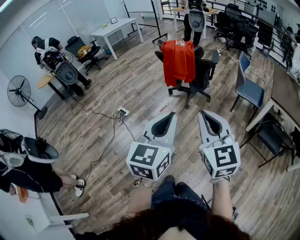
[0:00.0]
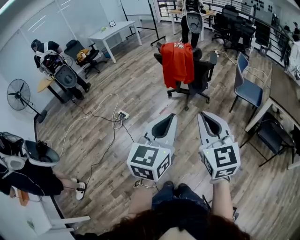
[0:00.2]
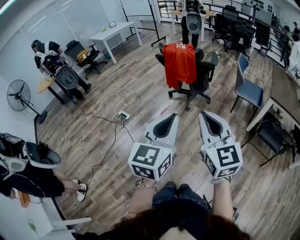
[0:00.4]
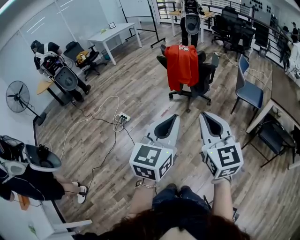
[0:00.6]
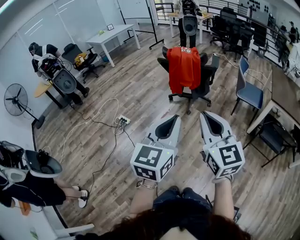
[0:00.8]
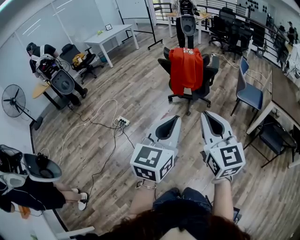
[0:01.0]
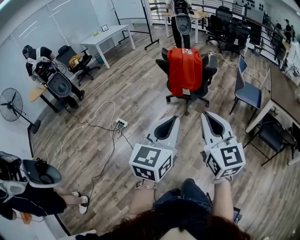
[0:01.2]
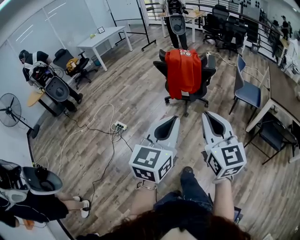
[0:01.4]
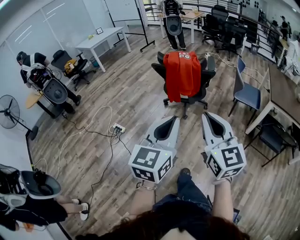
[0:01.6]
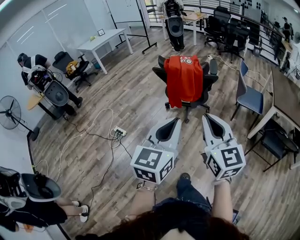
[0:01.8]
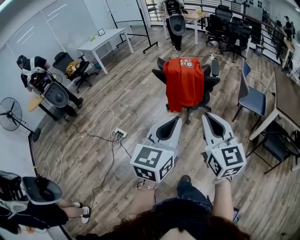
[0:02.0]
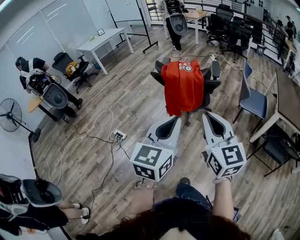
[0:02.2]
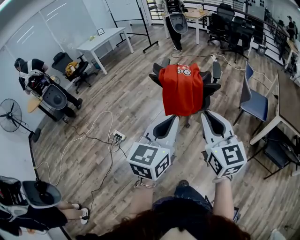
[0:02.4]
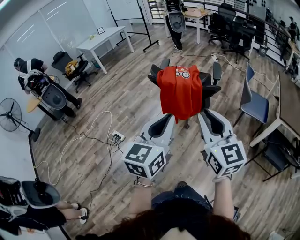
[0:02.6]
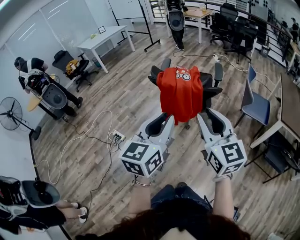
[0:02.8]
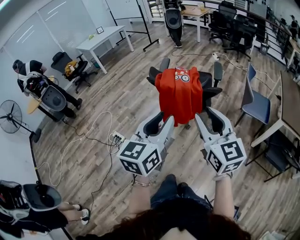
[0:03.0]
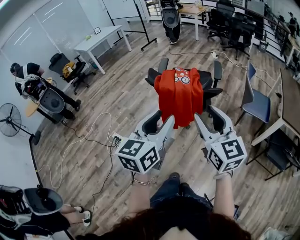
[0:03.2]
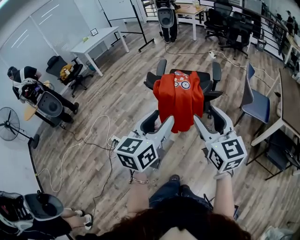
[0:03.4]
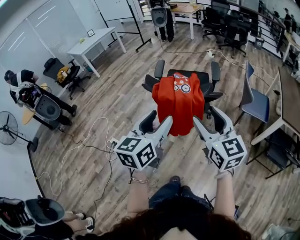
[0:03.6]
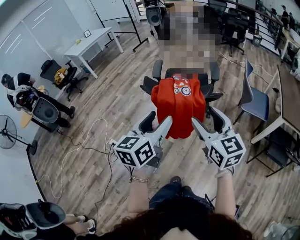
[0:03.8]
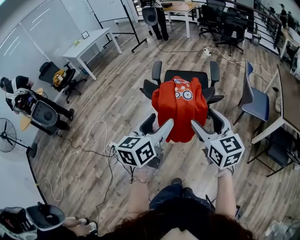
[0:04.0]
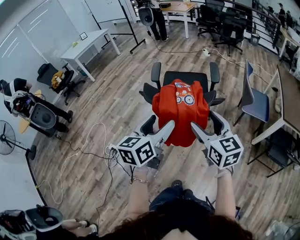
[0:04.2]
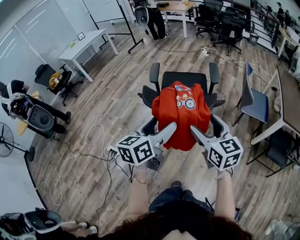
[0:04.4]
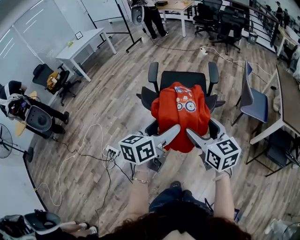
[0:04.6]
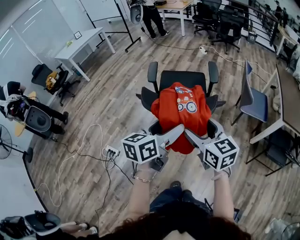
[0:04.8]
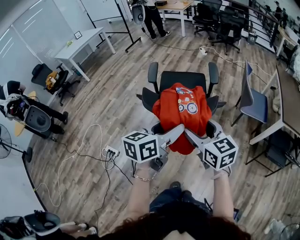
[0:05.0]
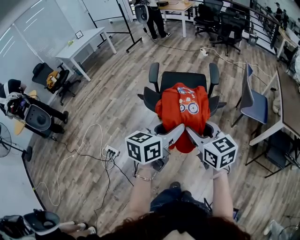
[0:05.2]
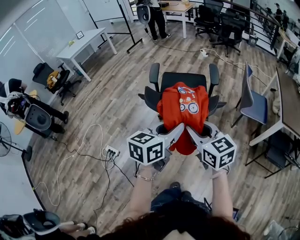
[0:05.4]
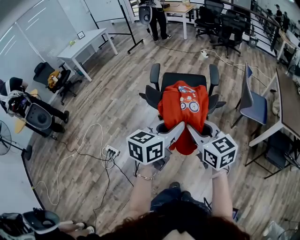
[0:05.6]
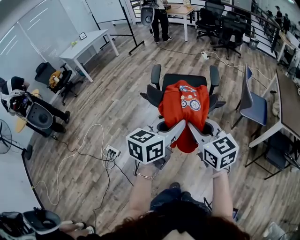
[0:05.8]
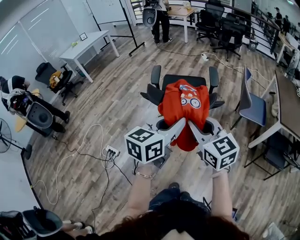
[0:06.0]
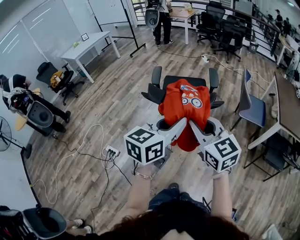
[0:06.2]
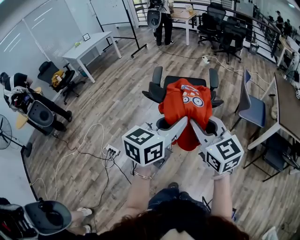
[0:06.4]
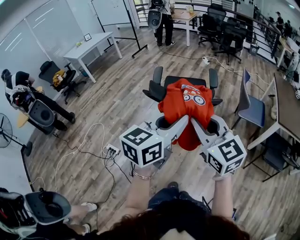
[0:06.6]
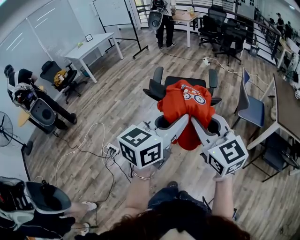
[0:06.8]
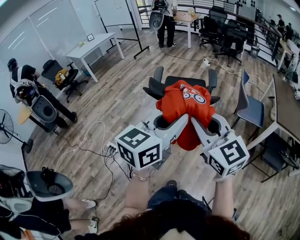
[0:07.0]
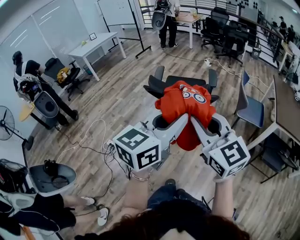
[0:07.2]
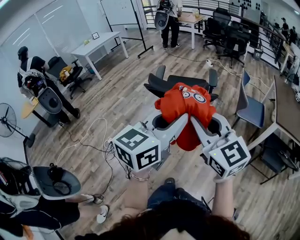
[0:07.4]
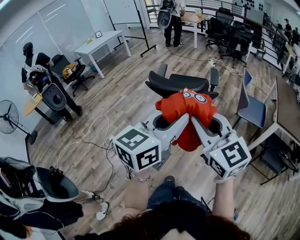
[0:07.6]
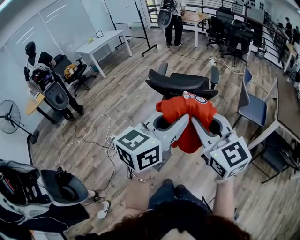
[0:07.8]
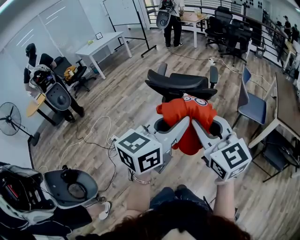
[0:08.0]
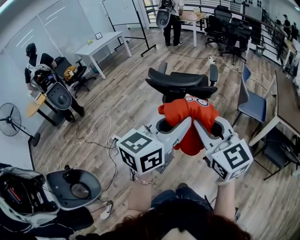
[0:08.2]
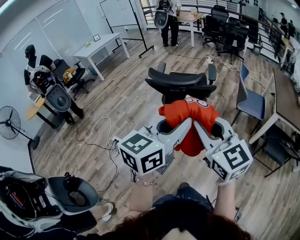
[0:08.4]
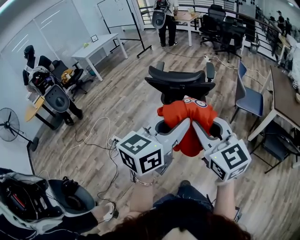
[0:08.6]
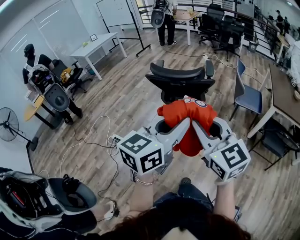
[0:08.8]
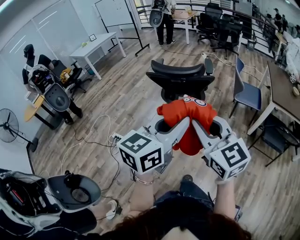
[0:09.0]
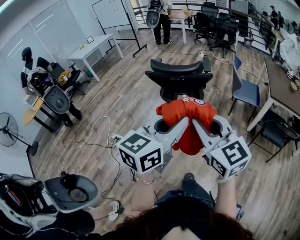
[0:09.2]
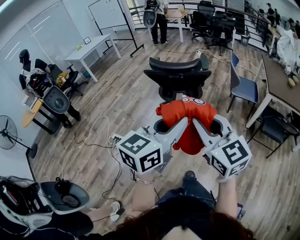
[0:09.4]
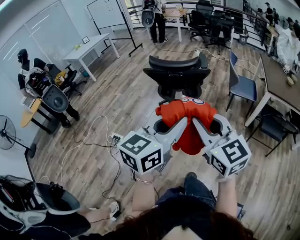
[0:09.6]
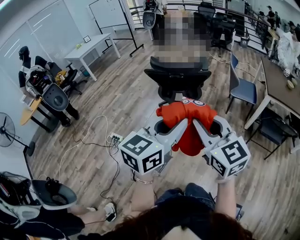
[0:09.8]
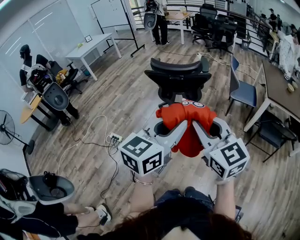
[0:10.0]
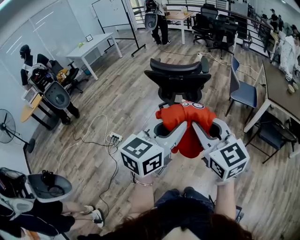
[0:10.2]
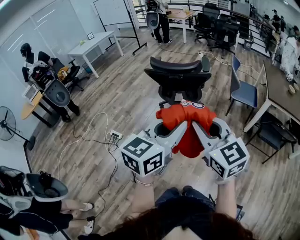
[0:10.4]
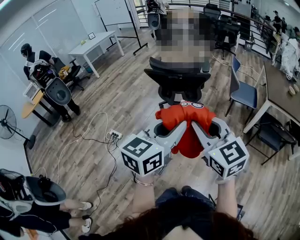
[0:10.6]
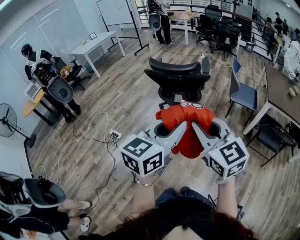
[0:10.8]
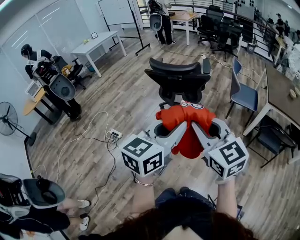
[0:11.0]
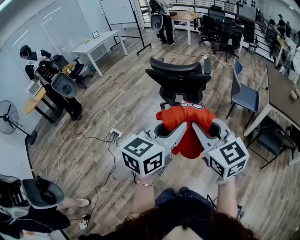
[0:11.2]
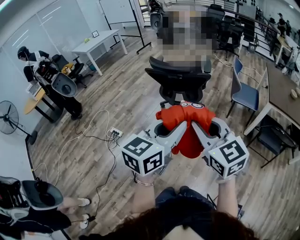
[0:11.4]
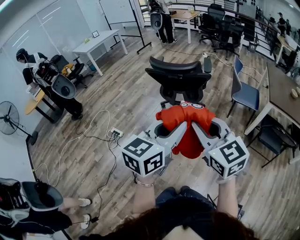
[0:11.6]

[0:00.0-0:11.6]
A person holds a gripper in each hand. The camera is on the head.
0:00.0 to 0:01.4: Both grippers move to the left and forward, approximately 15 cm.
0:01.4 to 0:02.8: The grippers both shift forward by roughly 25 cm.
0:02.8 to 0:04.4: Both grippers travel together forward and downward, roughly 20 cm. The left gripper changes its angle by some 20 degrees, and opens up. The right gripper opens.
0:04.4 to 0:05.8: The right gripper moves about 5 cm, and closes up, while the left gripper moves roughly 5 cm, and closes up.
0:05.8 to 0:07.2: The grippers both shift backward and upward by roughly 20 cm.
0:07.2 to 0:08.8: The two grippers go about 15 cm backward.
0:08.8 to 0:10.2: Both grippers travel together backward, about 5 cm.
0:10.2 to 0:11.6: The grippers move only a little.

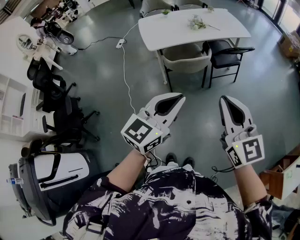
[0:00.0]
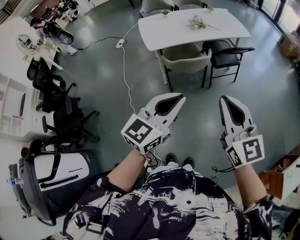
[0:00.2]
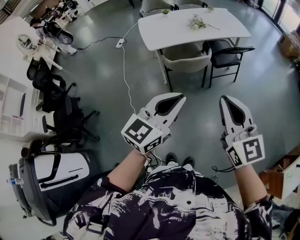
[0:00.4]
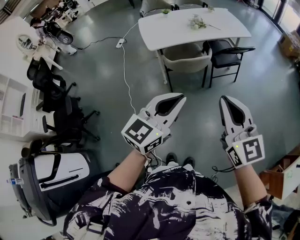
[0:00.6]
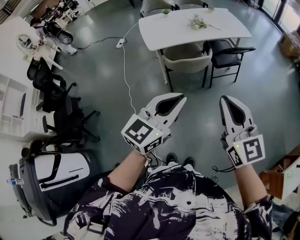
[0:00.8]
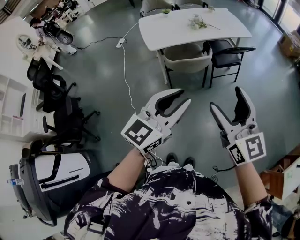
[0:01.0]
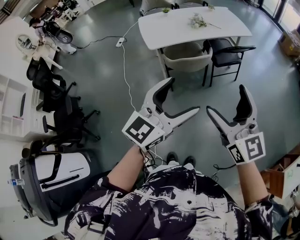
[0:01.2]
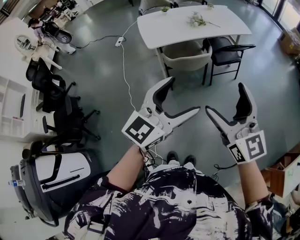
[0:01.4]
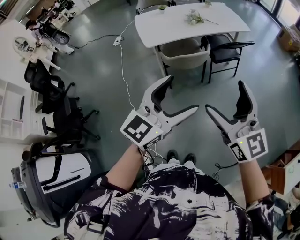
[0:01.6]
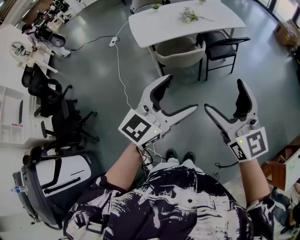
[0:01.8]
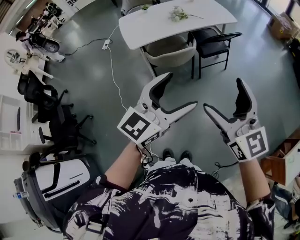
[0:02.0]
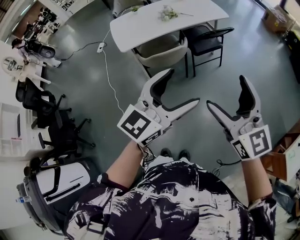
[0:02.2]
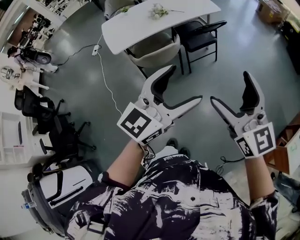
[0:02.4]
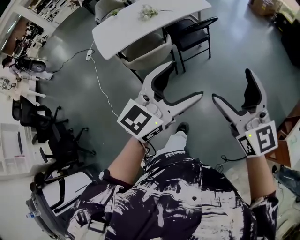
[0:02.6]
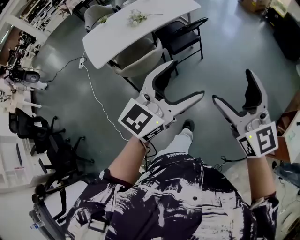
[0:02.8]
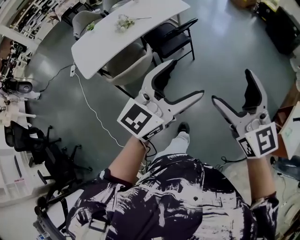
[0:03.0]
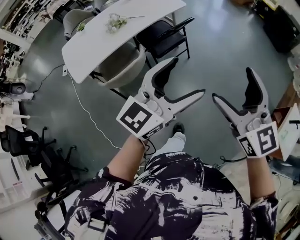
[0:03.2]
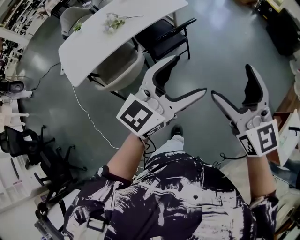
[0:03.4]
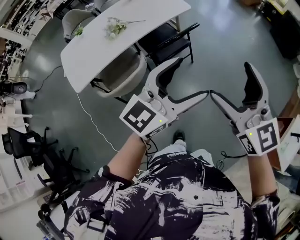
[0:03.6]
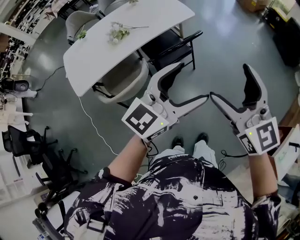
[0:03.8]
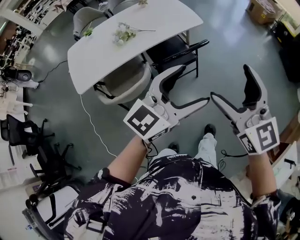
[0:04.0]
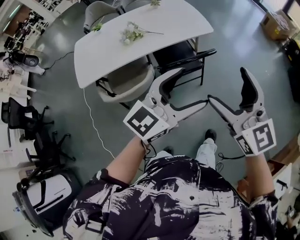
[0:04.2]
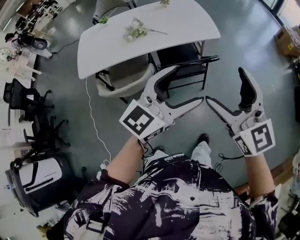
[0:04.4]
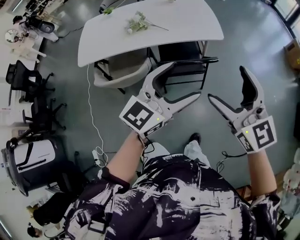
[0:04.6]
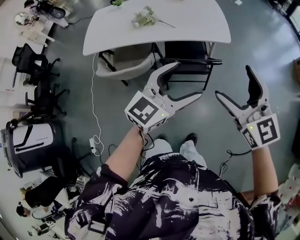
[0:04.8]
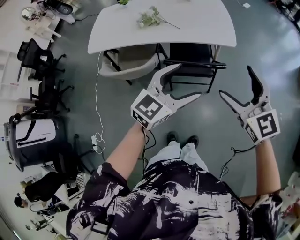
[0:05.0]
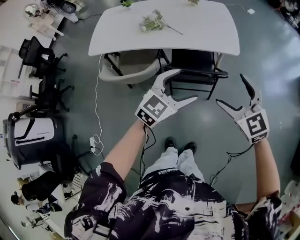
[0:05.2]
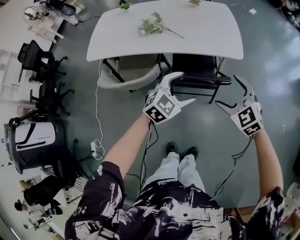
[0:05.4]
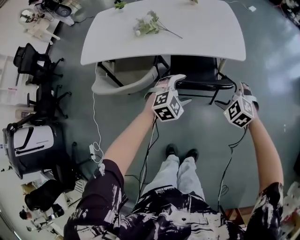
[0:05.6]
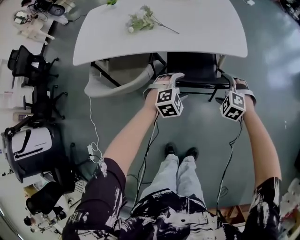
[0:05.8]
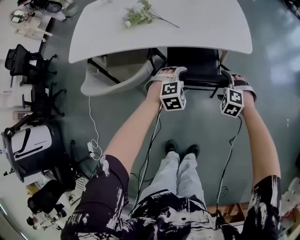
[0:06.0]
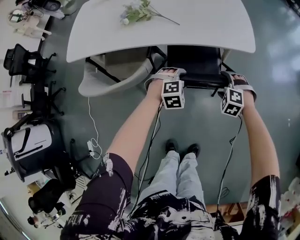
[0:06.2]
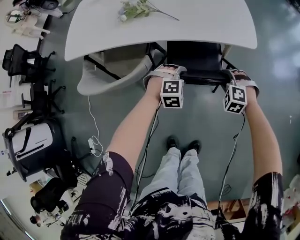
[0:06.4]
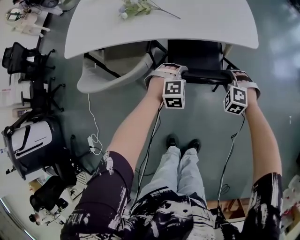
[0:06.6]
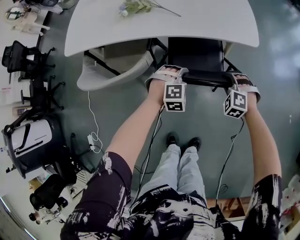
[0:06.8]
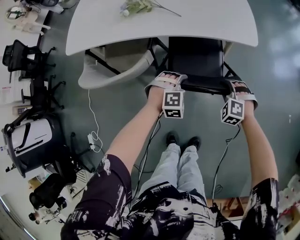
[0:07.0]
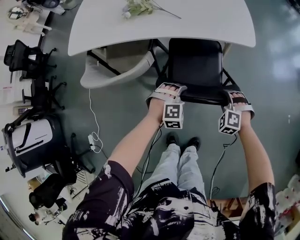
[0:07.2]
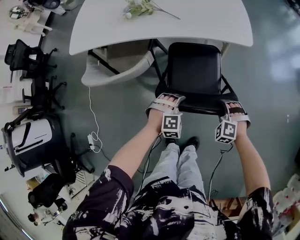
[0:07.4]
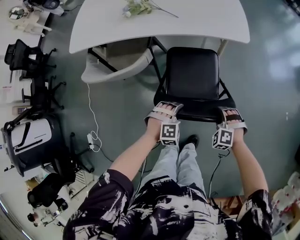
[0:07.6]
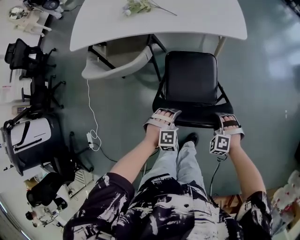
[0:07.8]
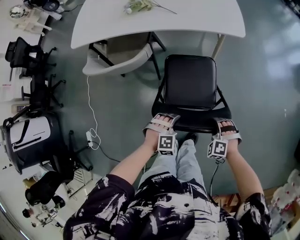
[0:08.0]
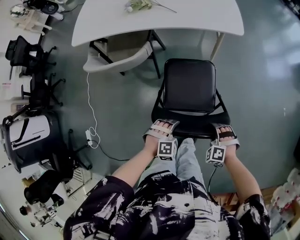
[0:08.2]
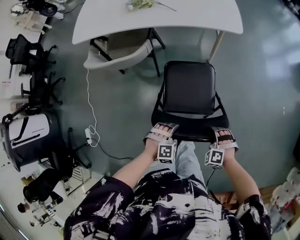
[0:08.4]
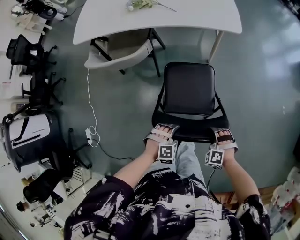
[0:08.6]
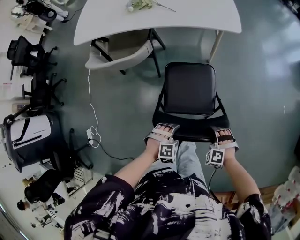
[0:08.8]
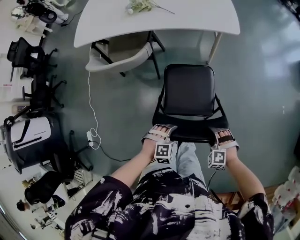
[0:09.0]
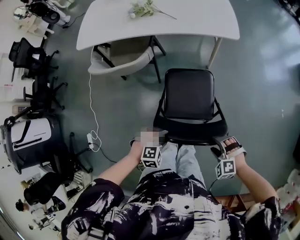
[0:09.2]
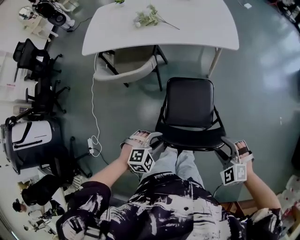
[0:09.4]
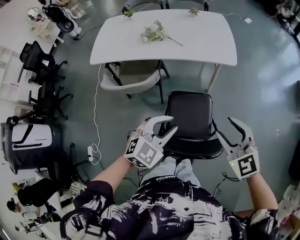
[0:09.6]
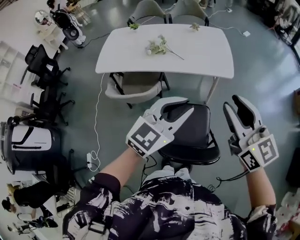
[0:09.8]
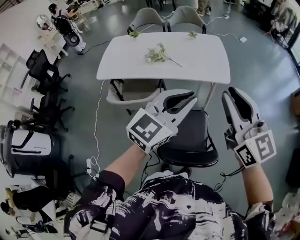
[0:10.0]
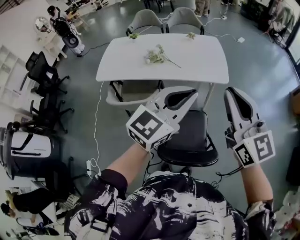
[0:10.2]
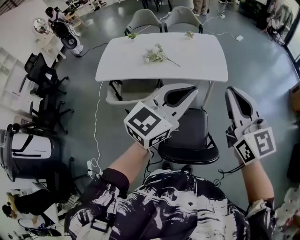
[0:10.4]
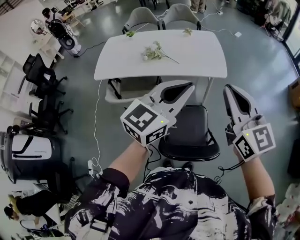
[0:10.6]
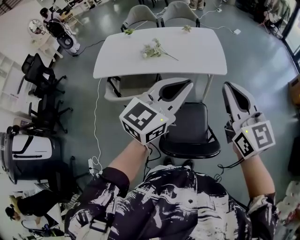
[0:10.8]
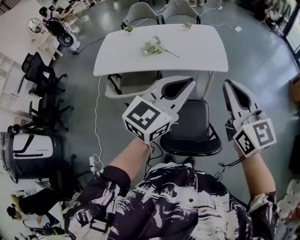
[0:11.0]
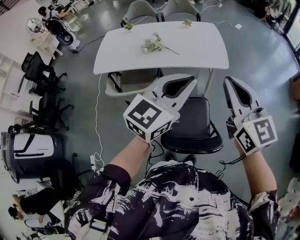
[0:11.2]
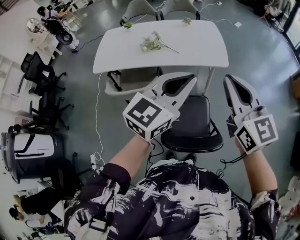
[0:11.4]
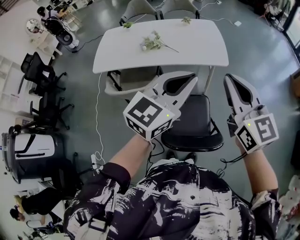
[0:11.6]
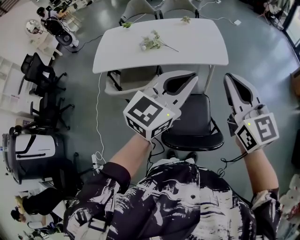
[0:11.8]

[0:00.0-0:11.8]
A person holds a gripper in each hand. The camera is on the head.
0:00.0 to 0:01.4: The left gripper opens. The right gripper opens up.
0:01.4 to 0:03.0: The grippers both shift to the right and forward by roughly 35 cm. The left gripper changes its angle by roughly 20 degrees. Meanwhile the right gripper turns by approximately 20 degrees.
0:03.0 to 0:04.4: The right gripper moves some 40 cm, and changes its angle by approximately 30 degrees, while the left gripper ends up approximately 35 cm from where it was, and rotates about 20 degrees.
0:04.4 to 0:06.0: The grippers both shift downward and forward by approximately 60 cm. The left gripper angles its fingers downward, by approximately 60 degrees. Meanwhile the right gripper tips its fingers downward by roughly 60 degrees.
0:06.0 to 0:07.4: The grippers both shift backward by about 15 cm. The left gripper closes; the right gripper closes its fingers.
0:07.4 to 0:08.8: Both grippers move backward, roughly 25 cm.
0:08.8 to 0:10.4: The two grippers go roughly 60 cm upward. The left gripper tilts its fingers about 60 degrees upward, while the right gripper tips its fingers upward by some 60 degrees.
0:10.4 to 0:11.8: There are only small adjustments of the grippers.
